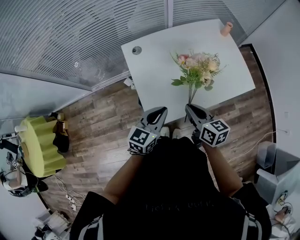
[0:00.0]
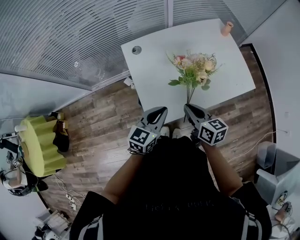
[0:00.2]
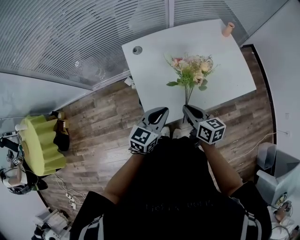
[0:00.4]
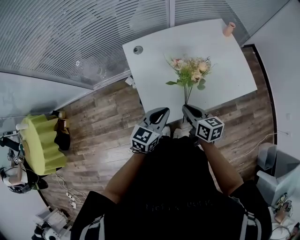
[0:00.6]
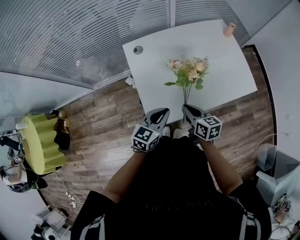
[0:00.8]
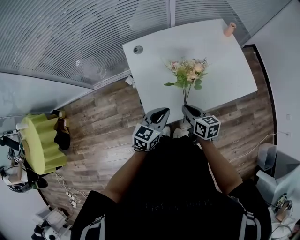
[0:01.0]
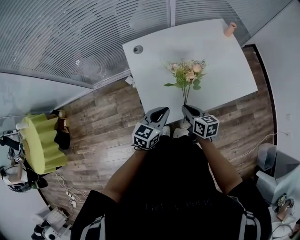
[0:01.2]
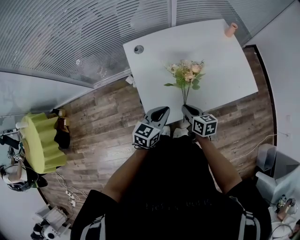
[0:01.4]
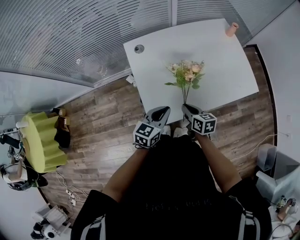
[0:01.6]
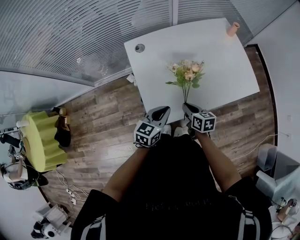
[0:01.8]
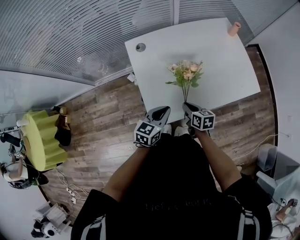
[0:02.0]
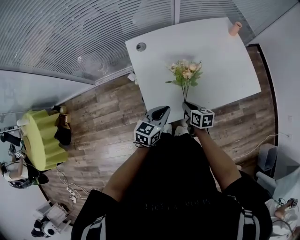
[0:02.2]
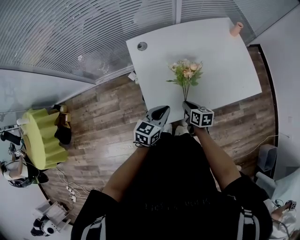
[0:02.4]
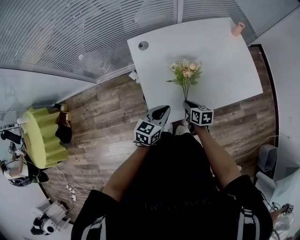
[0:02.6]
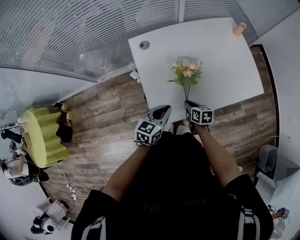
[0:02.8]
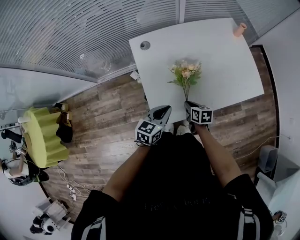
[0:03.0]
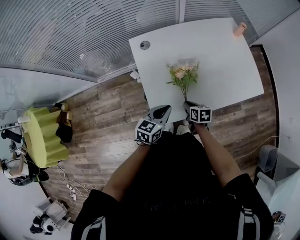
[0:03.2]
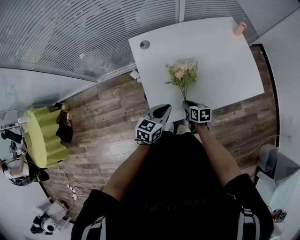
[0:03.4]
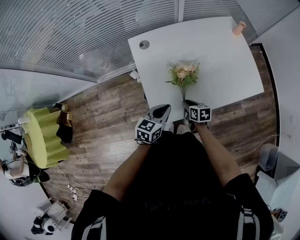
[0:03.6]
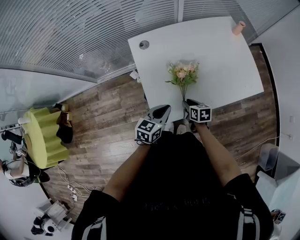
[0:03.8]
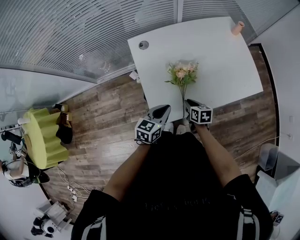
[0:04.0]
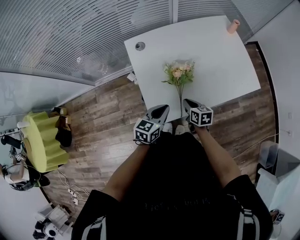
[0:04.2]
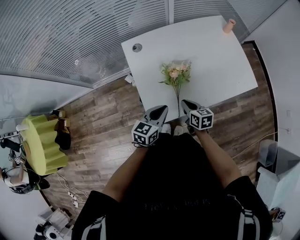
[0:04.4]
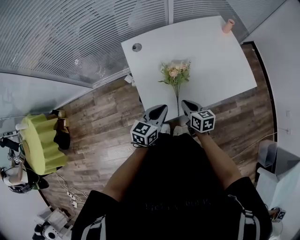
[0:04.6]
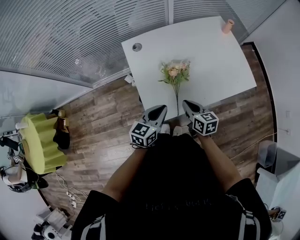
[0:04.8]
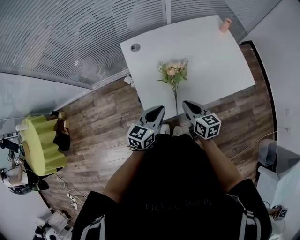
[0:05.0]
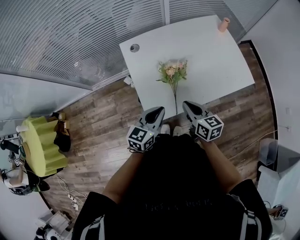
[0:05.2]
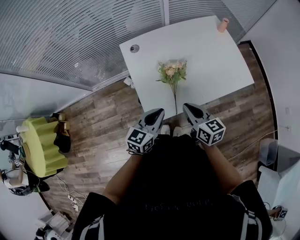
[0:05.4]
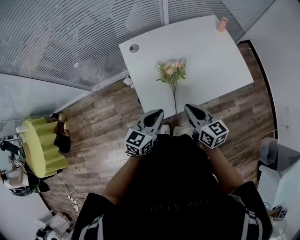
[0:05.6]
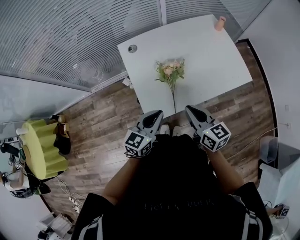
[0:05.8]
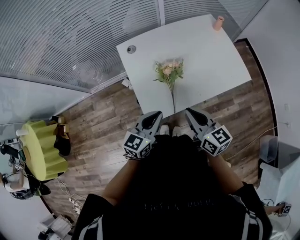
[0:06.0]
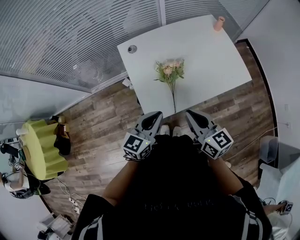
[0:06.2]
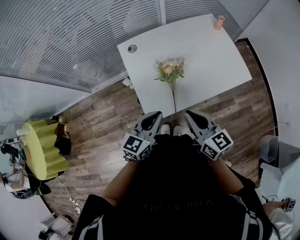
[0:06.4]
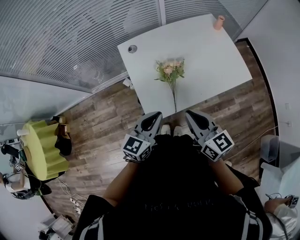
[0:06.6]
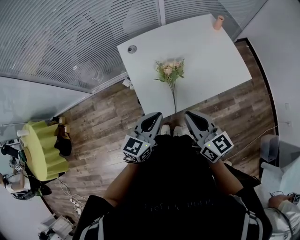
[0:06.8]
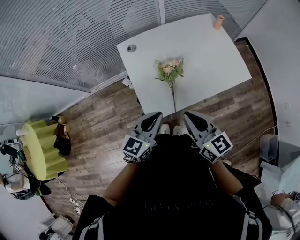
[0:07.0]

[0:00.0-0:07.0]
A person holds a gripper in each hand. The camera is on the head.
0:00.0 to 0:01.4: The right gripper travels downward by some 10 cm. The left gripper is displaced downward by approximately 5 cm.
0:01.4 to 0:02.8: The right gripper shifts some 10 cm downward.
0:02.8 to 0:04.2: The grippers stay close to where they were, moving slightly.
0:04.2 to 0:05.6: The left gripper is displaced upward by about 5 cm. Meanwhile the right gripper moves upward, roughly 20 cm, and changes its angle by some 20 degrees.
0:05.6 to 0:07.0: The right gripper heads upward, covering some 10 cm.

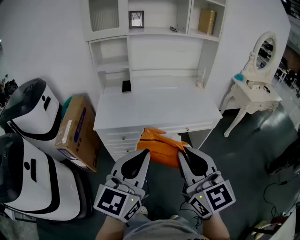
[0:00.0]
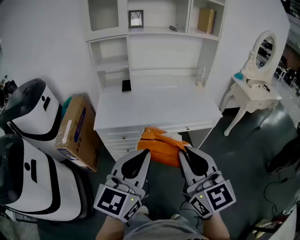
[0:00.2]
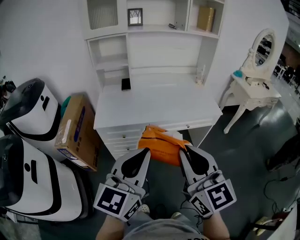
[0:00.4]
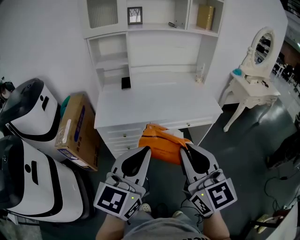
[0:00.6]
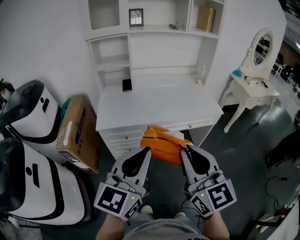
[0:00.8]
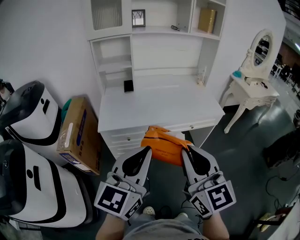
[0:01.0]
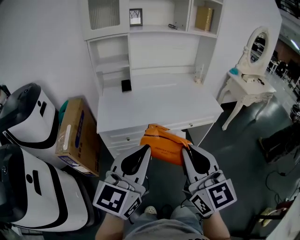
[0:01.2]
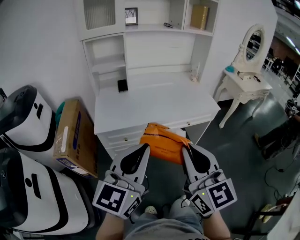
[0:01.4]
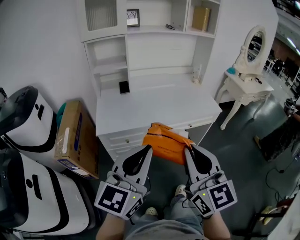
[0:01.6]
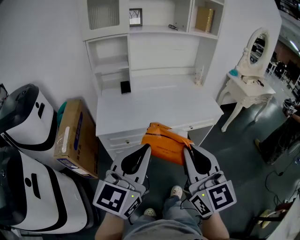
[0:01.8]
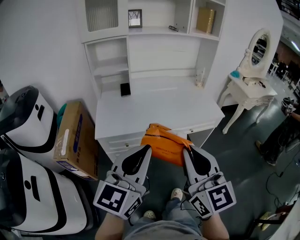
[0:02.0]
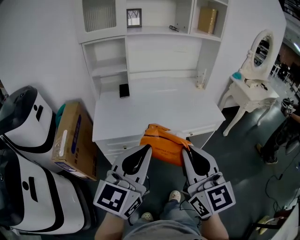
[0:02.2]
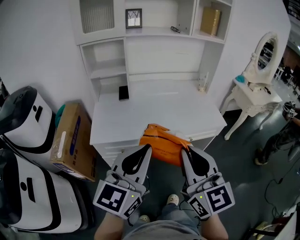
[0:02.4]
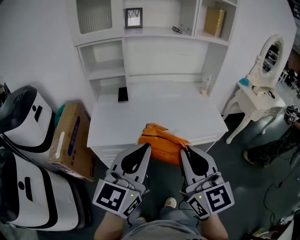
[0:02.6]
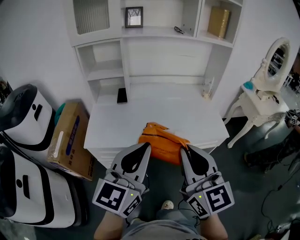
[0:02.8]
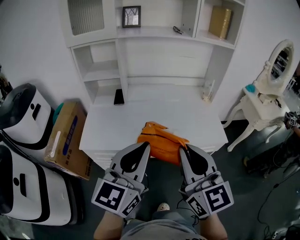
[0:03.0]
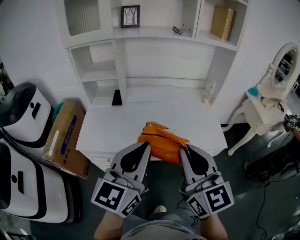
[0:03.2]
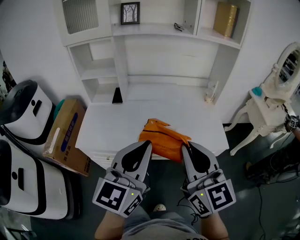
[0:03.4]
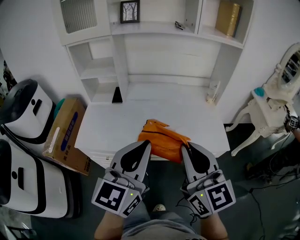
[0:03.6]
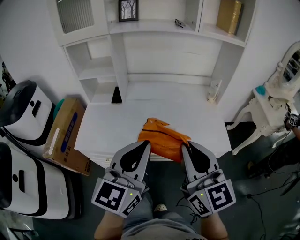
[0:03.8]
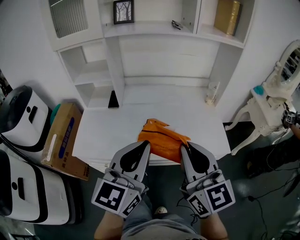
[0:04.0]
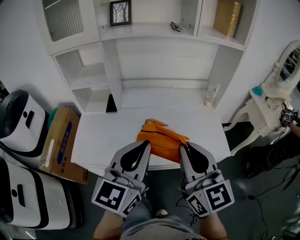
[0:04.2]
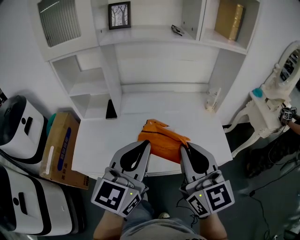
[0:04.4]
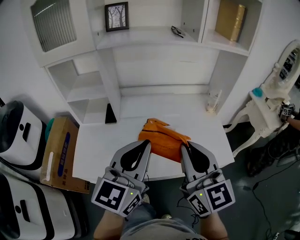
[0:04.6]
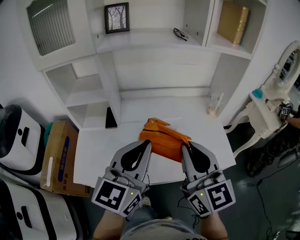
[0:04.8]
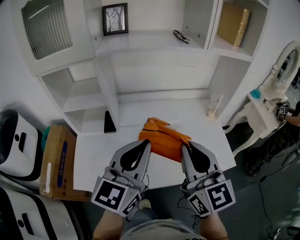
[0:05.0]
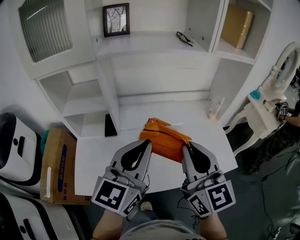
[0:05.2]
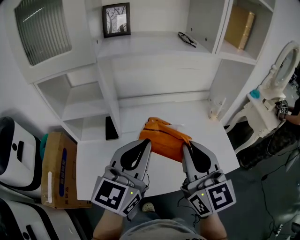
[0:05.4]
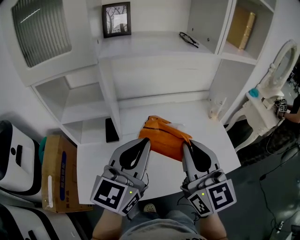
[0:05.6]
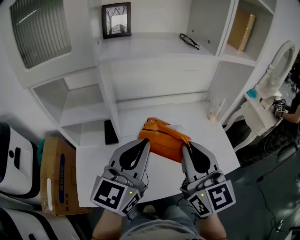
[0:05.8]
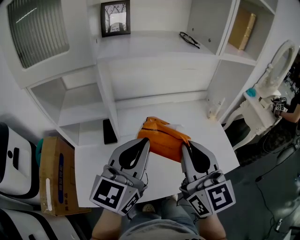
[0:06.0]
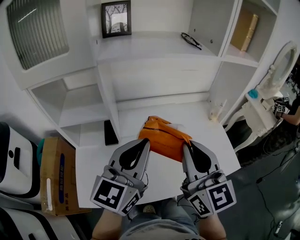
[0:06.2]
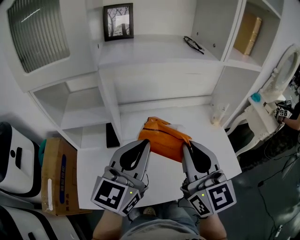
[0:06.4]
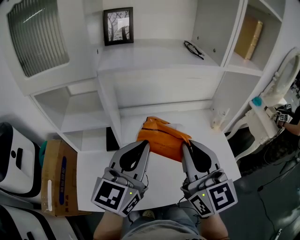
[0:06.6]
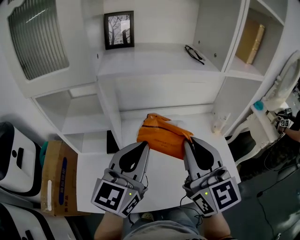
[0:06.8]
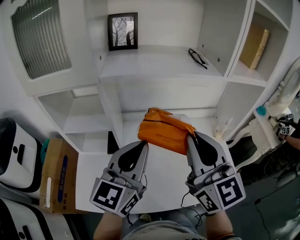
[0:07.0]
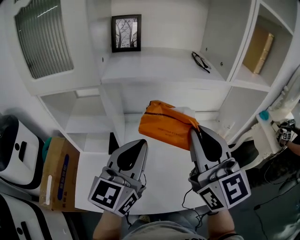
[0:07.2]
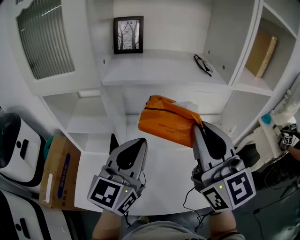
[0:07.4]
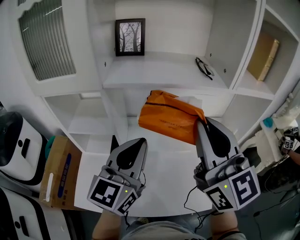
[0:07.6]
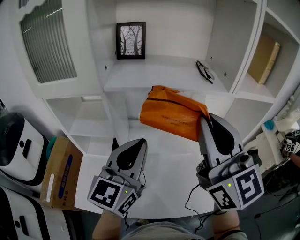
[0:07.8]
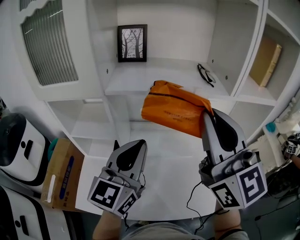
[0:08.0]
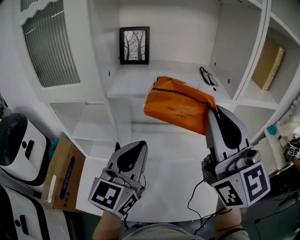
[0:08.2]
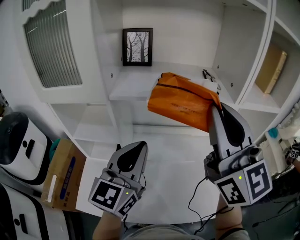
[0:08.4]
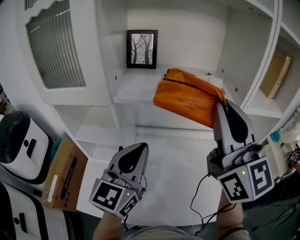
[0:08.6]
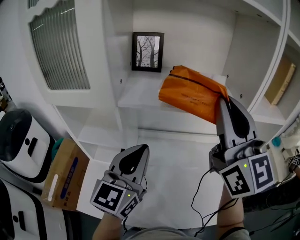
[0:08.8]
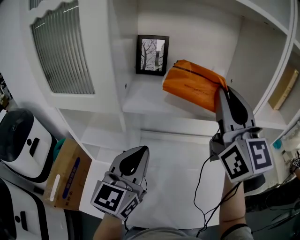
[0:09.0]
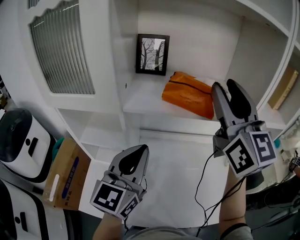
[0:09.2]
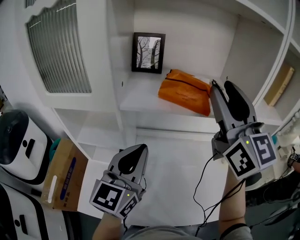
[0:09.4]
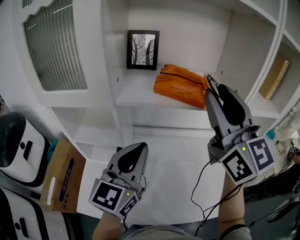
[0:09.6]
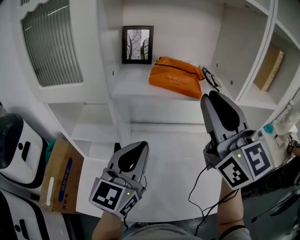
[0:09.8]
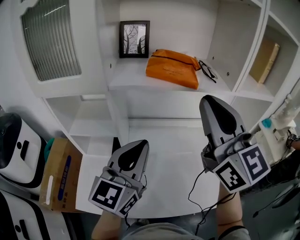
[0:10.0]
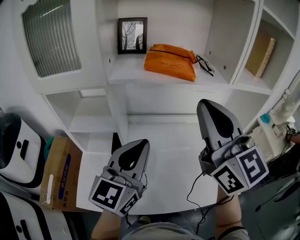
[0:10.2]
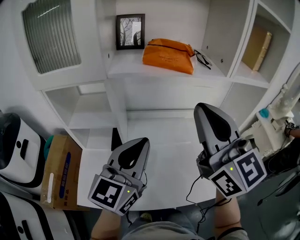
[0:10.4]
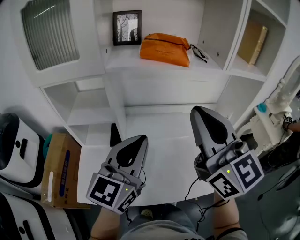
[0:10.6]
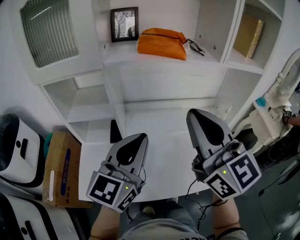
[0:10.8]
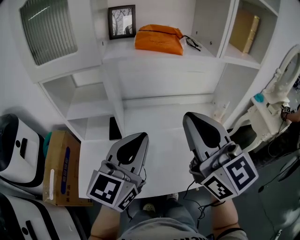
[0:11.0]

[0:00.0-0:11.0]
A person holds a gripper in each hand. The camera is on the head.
0:00.0 to 0:01.6: Both grippers move to the left, about 5 cm.
0:01.6 to 0:03.2: Both grippers move forward and to the right, roughly 30 cm.
0:03.2 to 0:04.8: The two grippers go some 20 cm forward.
0:04.8 to 0:06.2: Both grippers move forward and to the left, roughly 10 cm.
0:06.2 to 0:07.8: The right gripper is displaced upward and forward by approximately 20 cm; the left gripper goes some 10 cm forward and upward.
0:07.8 to 0:09.4: The left gripper moves roughly 5 cm; the right gripper travels forward and upward by approximately 15 cm, and opens its fingers.
0:09.4 to 0:11.0: The left gripper shifts about 10 cm backward; the right gripper shifts some 25 cm backward and downward, and closes its fingers.

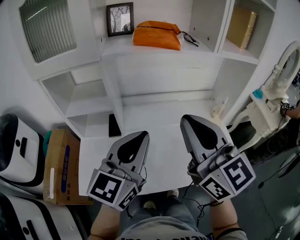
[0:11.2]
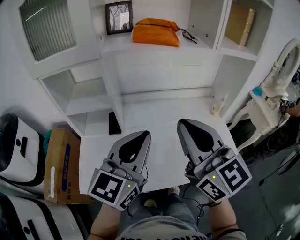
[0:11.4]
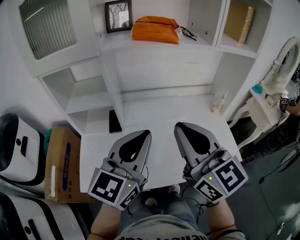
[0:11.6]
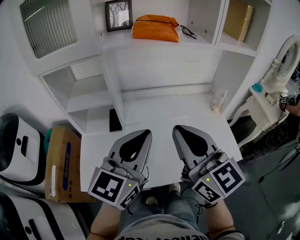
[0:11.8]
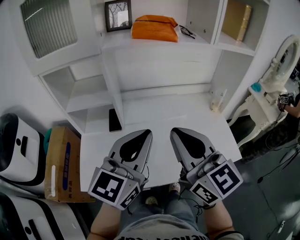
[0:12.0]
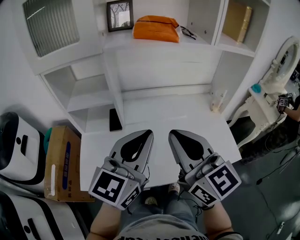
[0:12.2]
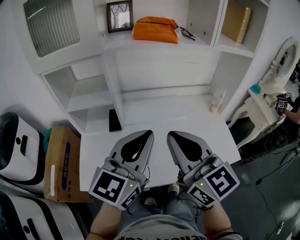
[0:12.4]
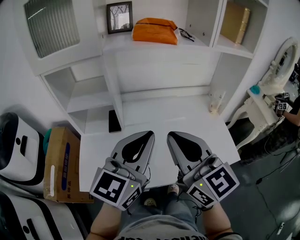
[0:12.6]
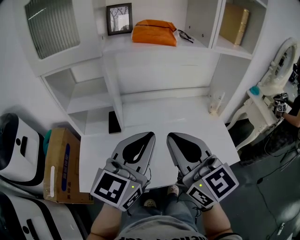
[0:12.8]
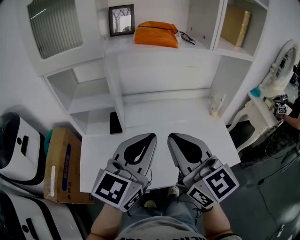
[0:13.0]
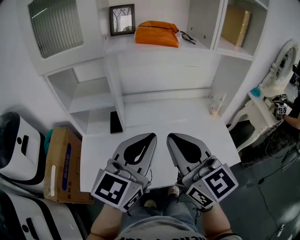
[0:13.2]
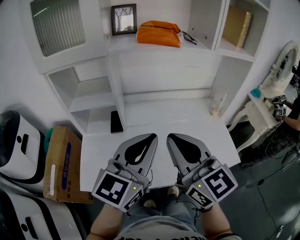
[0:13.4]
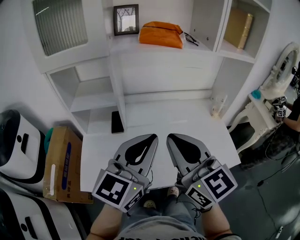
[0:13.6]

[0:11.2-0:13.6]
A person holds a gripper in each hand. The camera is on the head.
0:11.2 to 0:12.4: The right gripper is displaced downward by about 5 cm.
0:12.4 to 0:13.6: Both grippers stay about where they are.

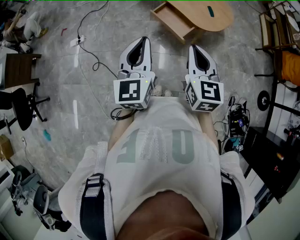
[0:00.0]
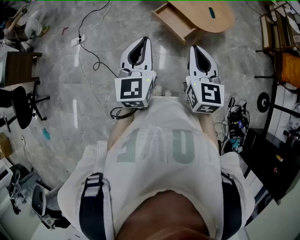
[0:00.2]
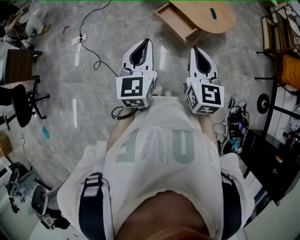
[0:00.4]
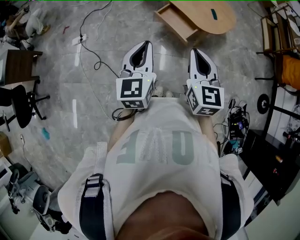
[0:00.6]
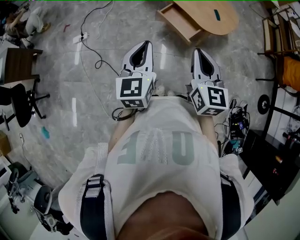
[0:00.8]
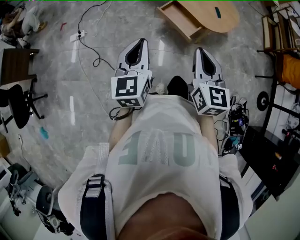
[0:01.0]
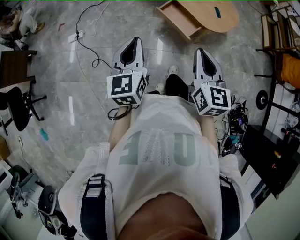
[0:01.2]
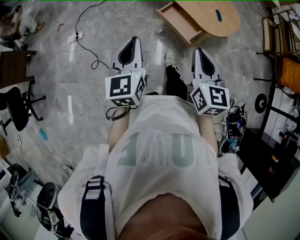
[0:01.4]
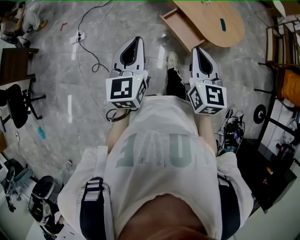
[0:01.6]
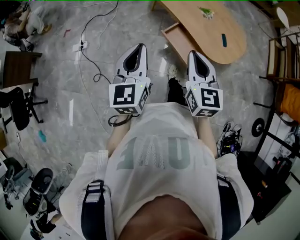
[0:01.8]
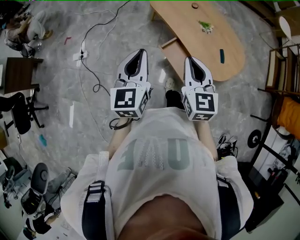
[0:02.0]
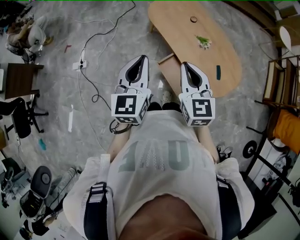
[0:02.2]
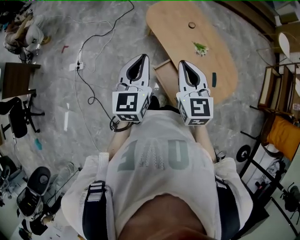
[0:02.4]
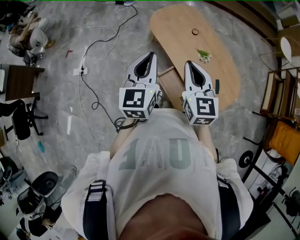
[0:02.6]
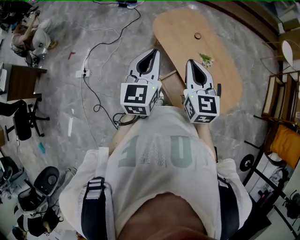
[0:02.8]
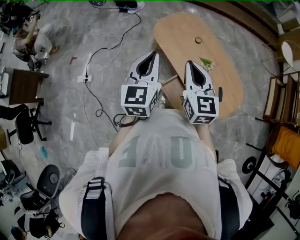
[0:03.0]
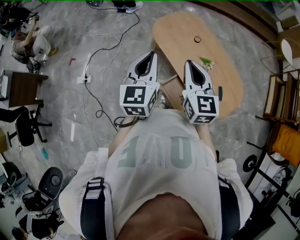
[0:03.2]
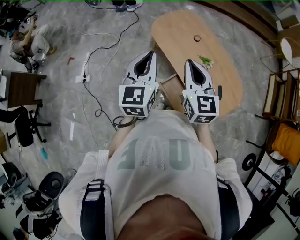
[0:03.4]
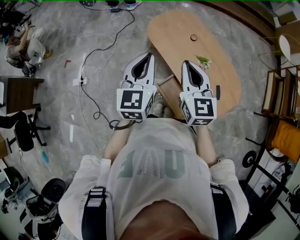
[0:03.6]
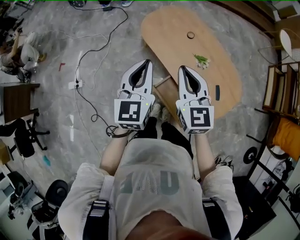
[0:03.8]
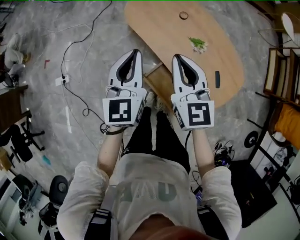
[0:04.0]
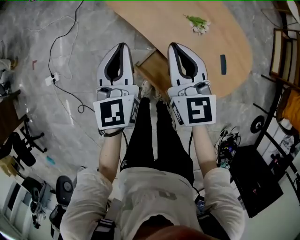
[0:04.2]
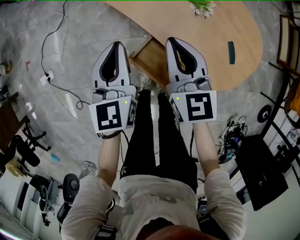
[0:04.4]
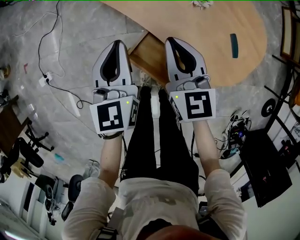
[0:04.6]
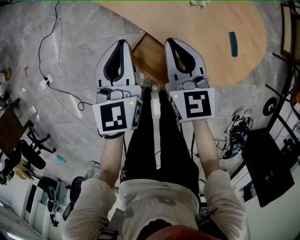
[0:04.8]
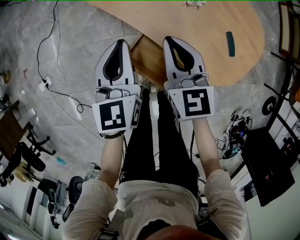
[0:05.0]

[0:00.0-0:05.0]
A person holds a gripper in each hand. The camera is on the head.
0:00.0 to 0:01.6: The two grippers go roughly 15 cm forward and to the left.
0:01.6 to 0:03.4: Both grippers move forward, about 40 cm.
0:03.4 to 0:05.0: Both grippers travel together downward, some 35 cm.
